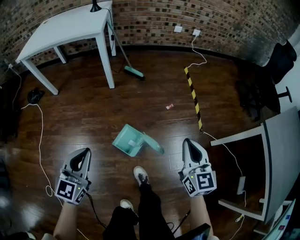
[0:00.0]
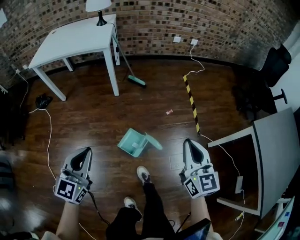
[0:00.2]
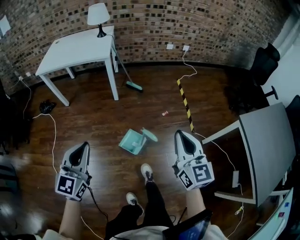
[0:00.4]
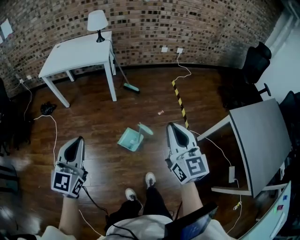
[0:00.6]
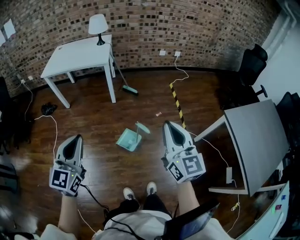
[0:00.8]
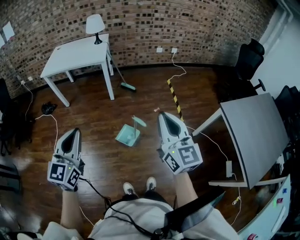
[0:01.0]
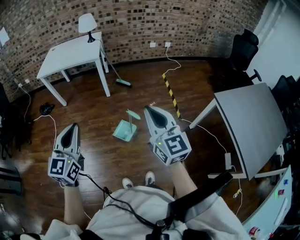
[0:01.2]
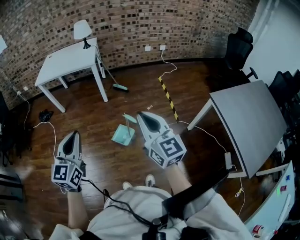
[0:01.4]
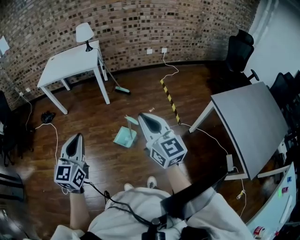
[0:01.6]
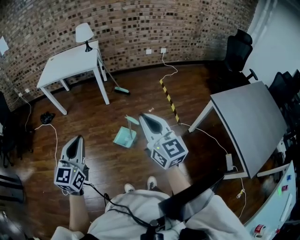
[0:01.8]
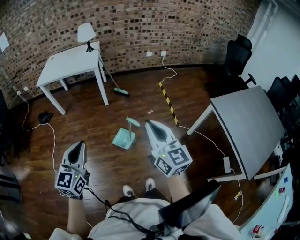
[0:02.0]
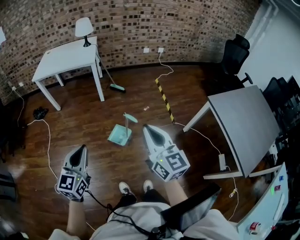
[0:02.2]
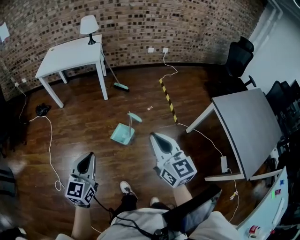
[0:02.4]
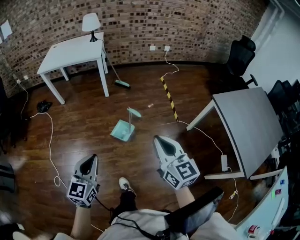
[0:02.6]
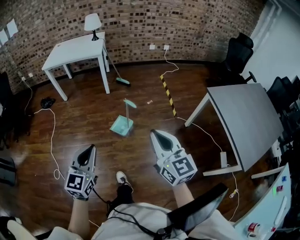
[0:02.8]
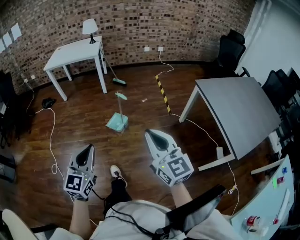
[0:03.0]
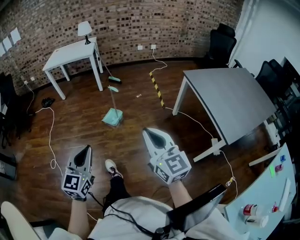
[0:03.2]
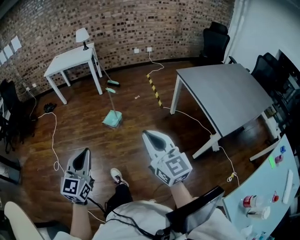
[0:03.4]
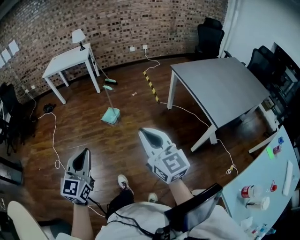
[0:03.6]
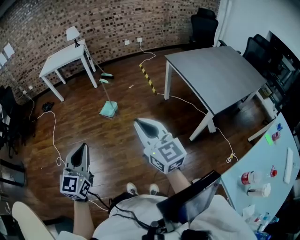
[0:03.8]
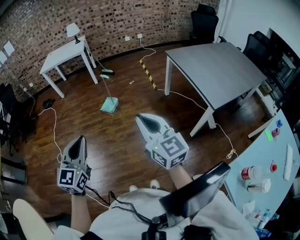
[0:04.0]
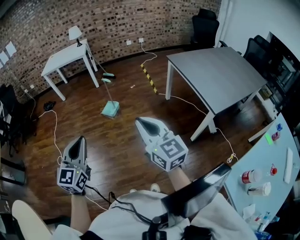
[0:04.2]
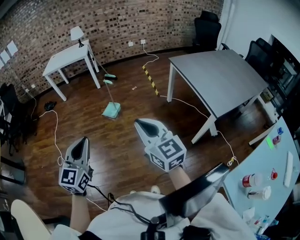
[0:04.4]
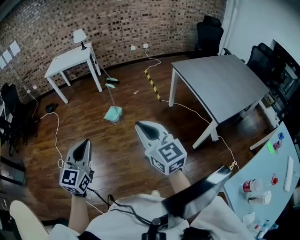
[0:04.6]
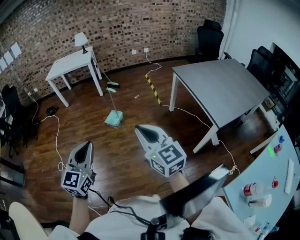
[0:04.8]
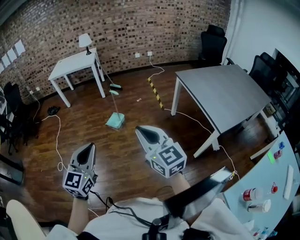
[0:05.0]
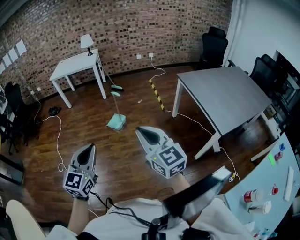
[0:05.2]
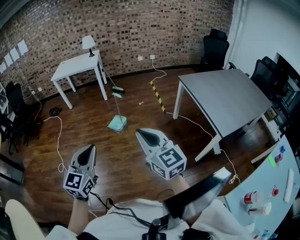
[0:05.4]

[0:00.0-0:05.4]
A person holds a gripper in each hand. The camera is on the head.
0:00.0 to 0:01.4: The grippers both shift upward and backward by roughly 40 cm. The right gripper rotates about 20 degrees.
0:01.4 to 0:02.8: The left gripper goes approximately 20 cm backward and downward. The right gripper moves backward, roughly 20 cm.
0:02.8 to 0:04.0: The two grippers travel together, backward, approximately 40 cm.
0:04.0 to 0:05.4: The left gripper heads forward, covering roughly 5 cm, while the right gripper moves forward and to the left, roughly 10 cm.

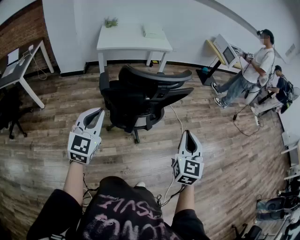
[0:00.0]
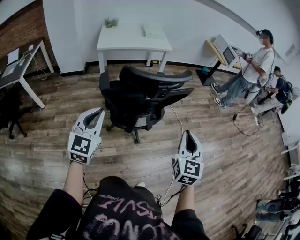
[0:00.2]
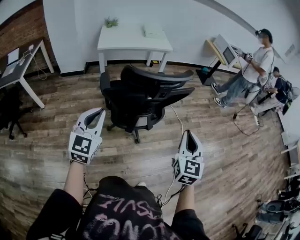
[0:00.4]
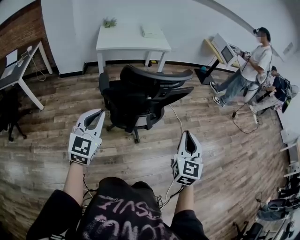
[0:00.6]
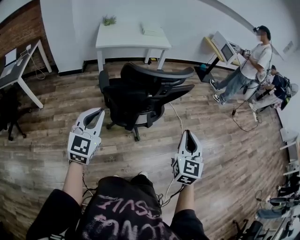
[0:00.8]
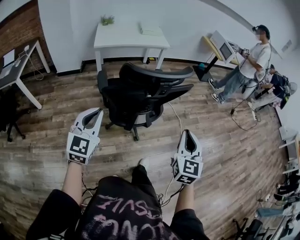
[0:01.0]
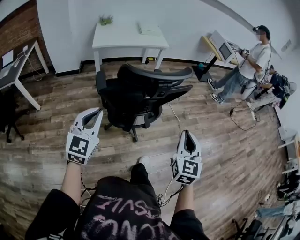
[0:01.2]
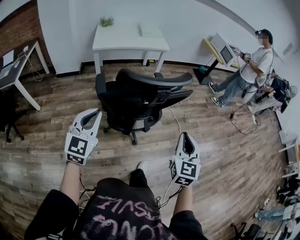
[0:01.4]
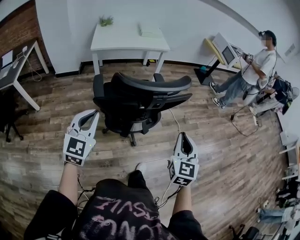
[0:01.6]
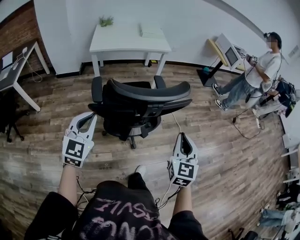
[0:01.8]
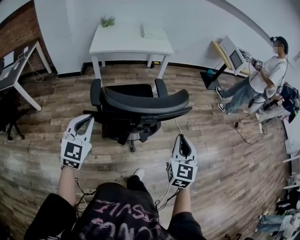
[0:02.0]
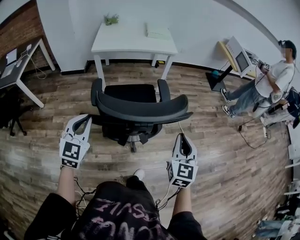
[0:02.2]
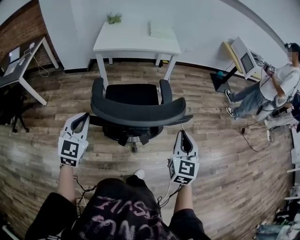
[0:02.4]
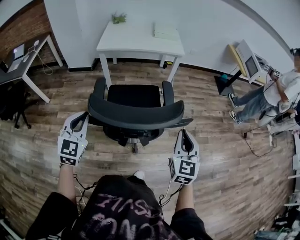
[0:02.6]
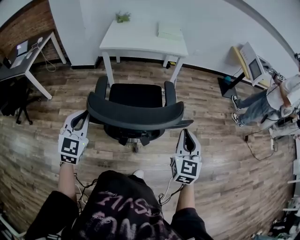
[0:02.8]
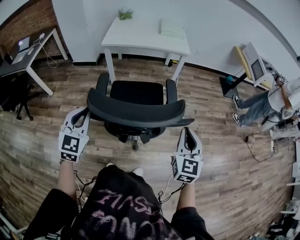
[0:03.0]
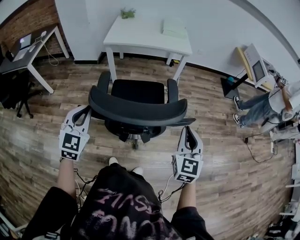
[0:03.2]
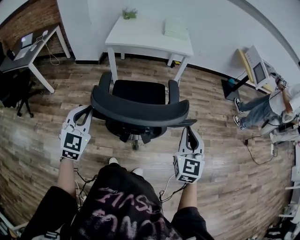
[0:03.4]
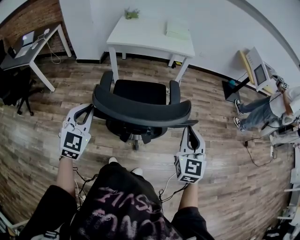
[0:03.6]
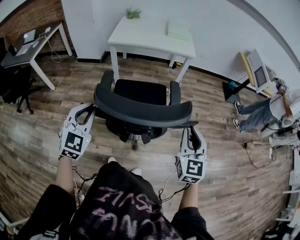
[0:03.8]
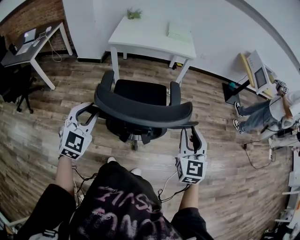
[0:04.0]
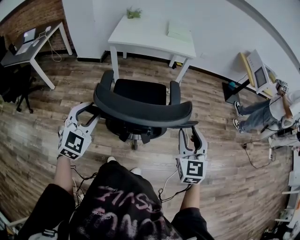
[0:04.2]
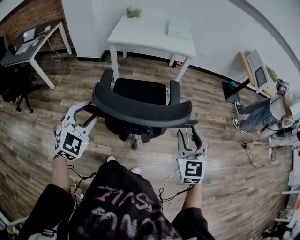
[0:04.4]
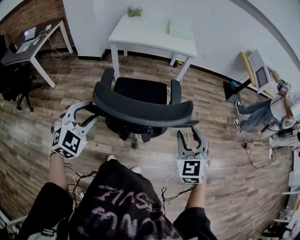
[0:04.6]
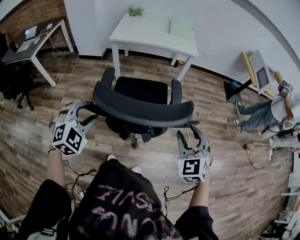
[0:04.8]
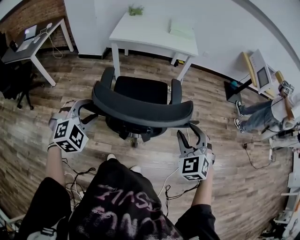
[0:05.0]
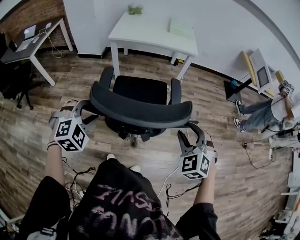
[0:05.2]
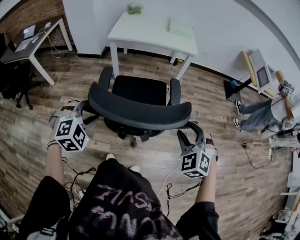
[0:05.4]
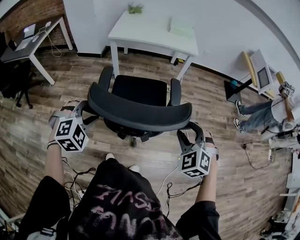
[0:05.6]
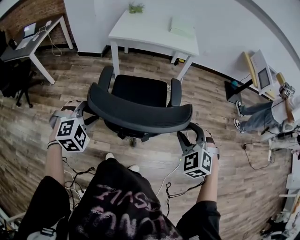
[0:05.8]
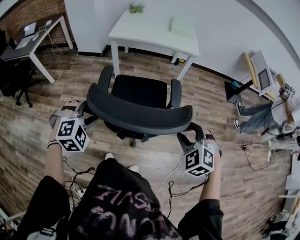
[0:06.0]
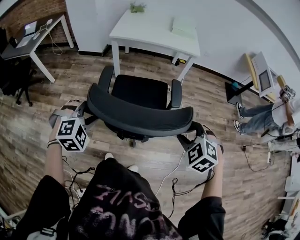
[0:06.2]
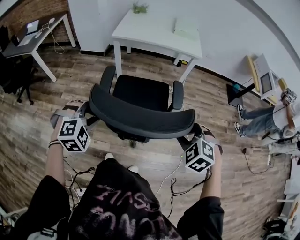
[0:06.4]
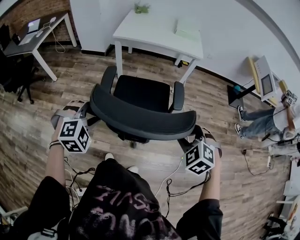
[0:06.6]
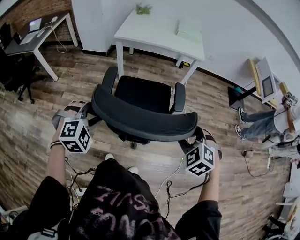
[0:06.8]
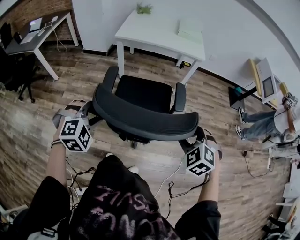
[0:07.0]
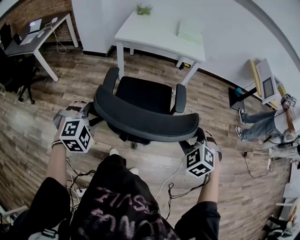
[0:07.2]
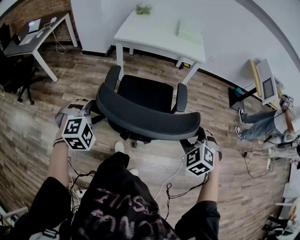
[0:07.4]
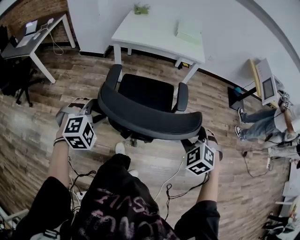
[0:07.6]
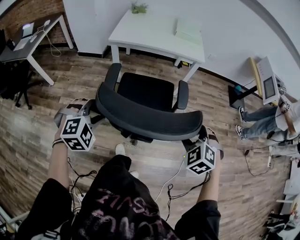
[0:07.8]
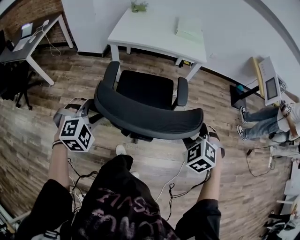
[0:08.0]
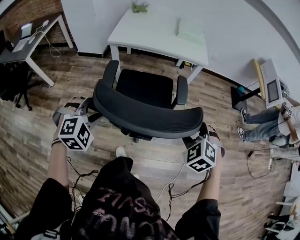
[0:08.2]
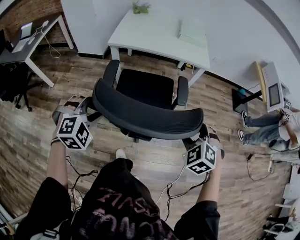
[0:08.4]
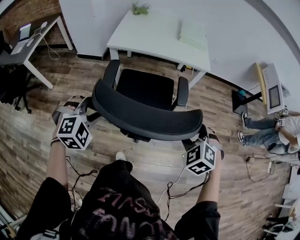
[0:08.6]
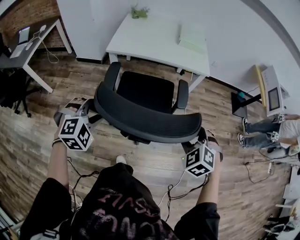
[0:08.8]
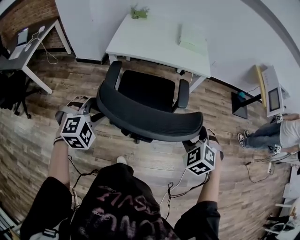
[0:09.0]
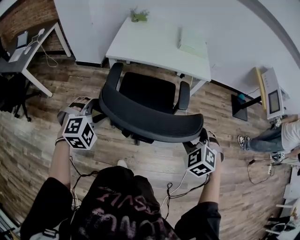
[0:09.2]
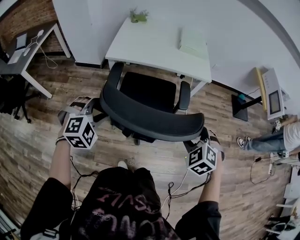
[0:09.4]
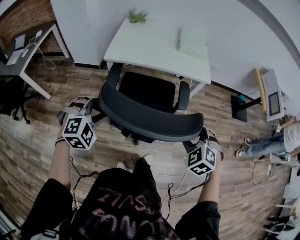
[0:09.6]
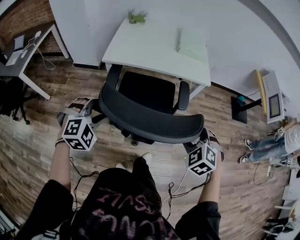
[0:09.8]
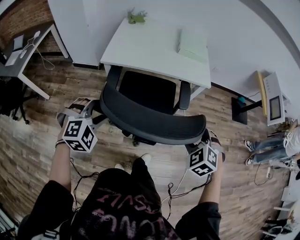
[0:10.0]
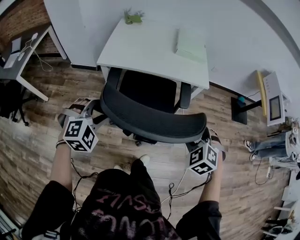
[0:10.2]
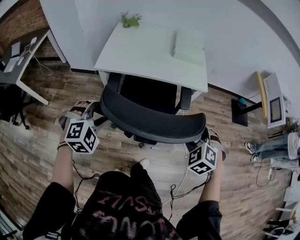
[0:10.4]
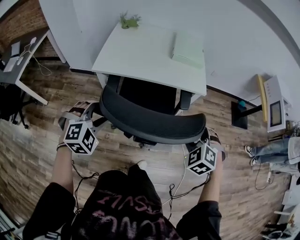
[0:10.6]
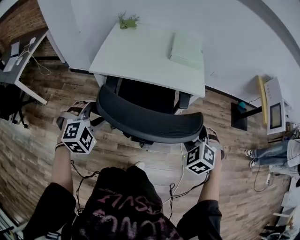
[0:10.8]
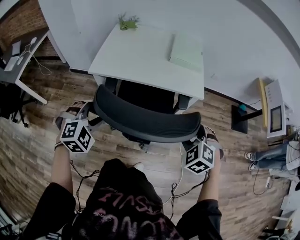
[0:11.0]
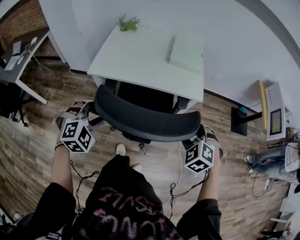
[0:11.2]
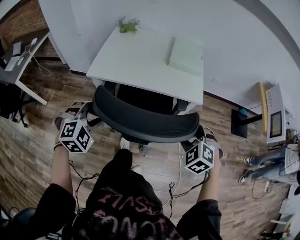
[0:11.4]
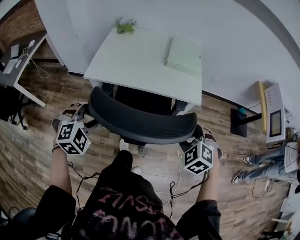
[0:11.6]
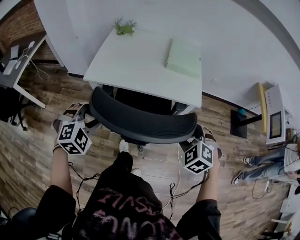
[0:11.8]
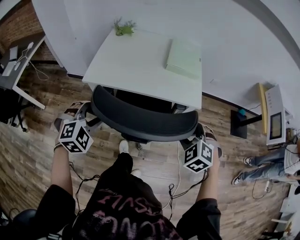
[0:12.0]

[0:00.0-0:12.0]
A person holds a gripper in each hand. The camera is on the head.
0:00.0 to 0:01.6: Both grippers move forward, approximately 5 cm.
0:01.6 to 0:03.0: The right gripper goes some 20 cm forward; the left gripper travels forward by about 10 cm.
0:03.0 to 0:04.4: The right gripper opens up, while the left gripper opens up.
0:04.4 to 0:06.0: The right gripper moves about 5 cm, and rotates some 50 degrees; the left gripper shifts some 5 cm downward, and rotates about 30 degrees.
0:06.0 to 0:07.6: Both grippers move forward, roughly 5 cm.
0:07.6 to 0:09.0: The two grippers go roughly 20 cm forward.
0:09.0 to 0:10.4: The two grippers go some 15 cm forward.
0:10.4 to 0:12.0: Both grippers travel together forward, some 10 cm.

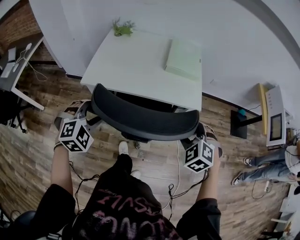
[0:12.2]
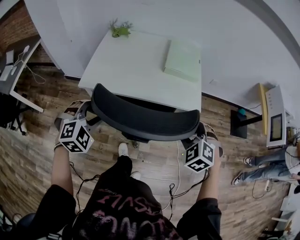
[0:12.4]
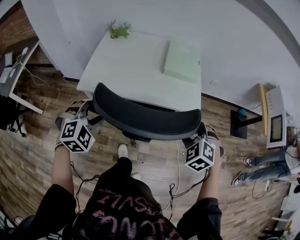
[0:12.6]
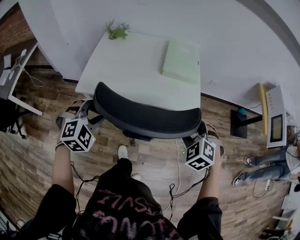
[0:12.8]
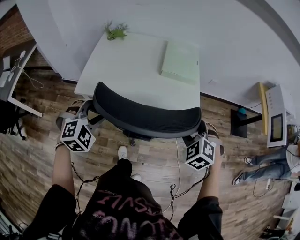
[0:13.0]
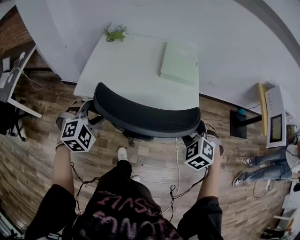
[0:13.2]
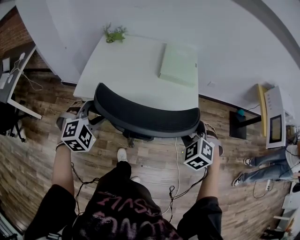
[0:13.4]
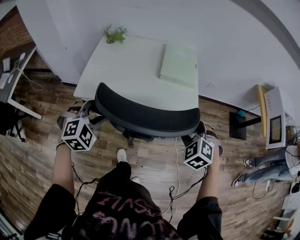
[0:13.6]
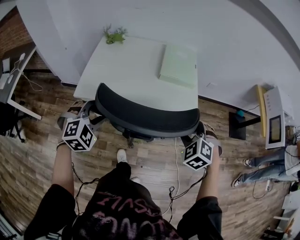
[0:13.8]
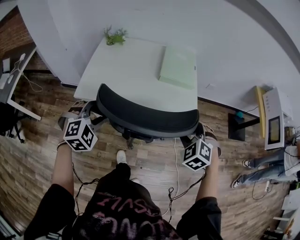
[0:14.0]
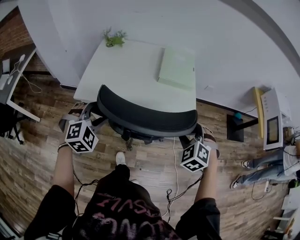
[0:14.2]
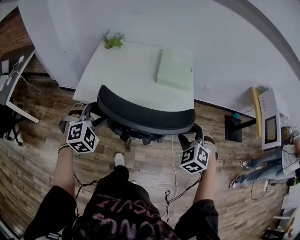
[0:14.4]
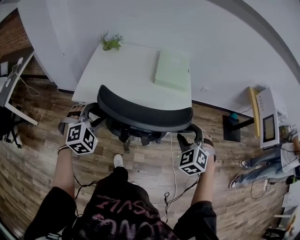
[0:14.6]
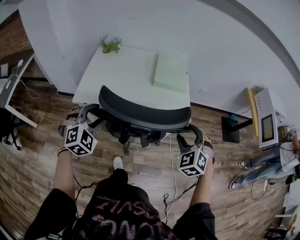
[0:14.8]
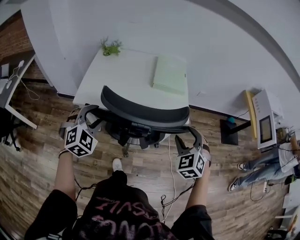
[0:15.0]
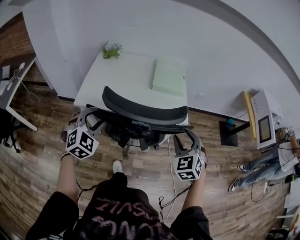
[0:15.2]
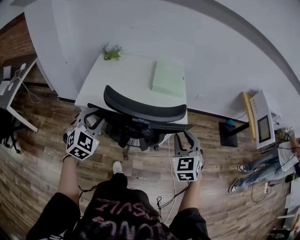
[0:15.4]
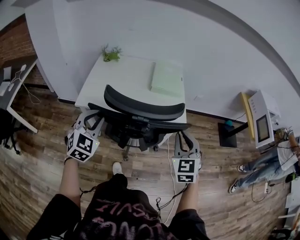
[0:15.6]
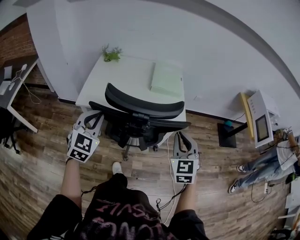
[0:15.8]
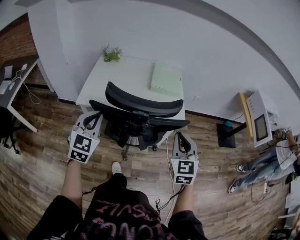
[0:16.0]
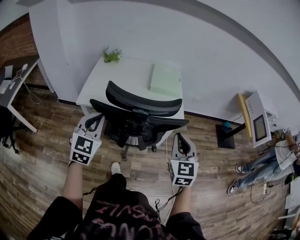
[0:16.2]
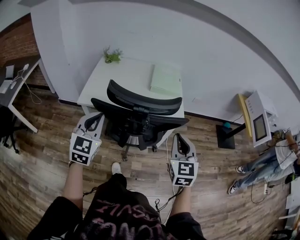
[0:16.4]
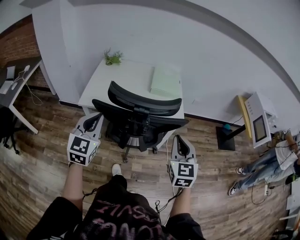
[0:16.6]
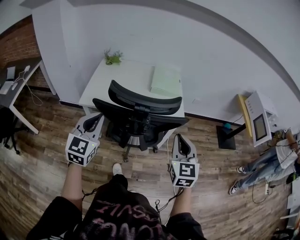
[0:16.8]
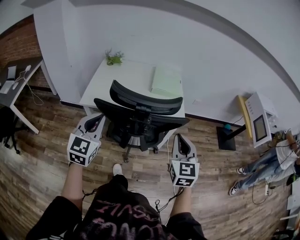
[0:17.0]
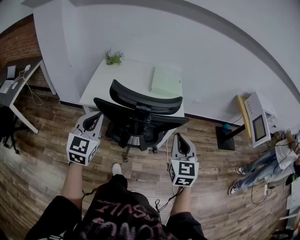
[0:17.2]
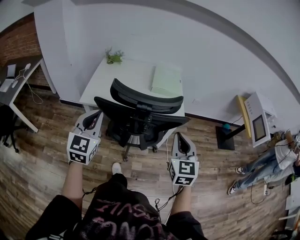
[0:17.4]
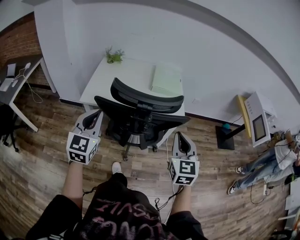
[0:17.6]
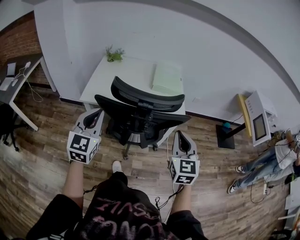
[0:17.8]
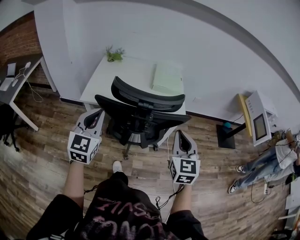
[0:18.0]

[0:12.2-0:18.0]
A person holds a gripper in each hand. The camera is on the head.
0:12.2 to 0:13.6: The grippers both shift forward by some 10 cm.
0:13.6 to 0:15.0: The right gripper changes place by approximately 5 cm, and swivels some 20 degrees.
0:15.0 to 0:16.6: The grippers both shift backward and upward by approximately 10 cm. The right gripper turns by approximately 40 degrees, and closes, while the left gripper swivels approximately 40 degrees, and closes.
0:16.6 to 0:18.0: The grippers stay close to where they were, moving slightly.
